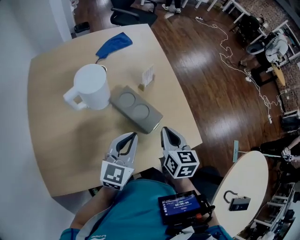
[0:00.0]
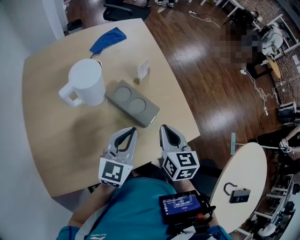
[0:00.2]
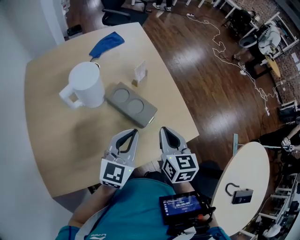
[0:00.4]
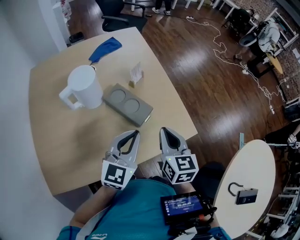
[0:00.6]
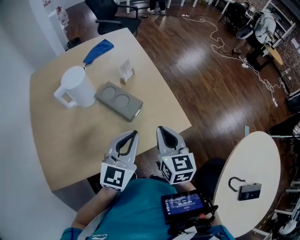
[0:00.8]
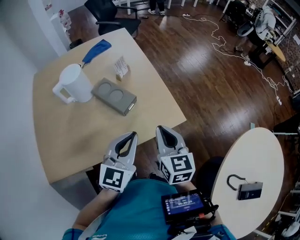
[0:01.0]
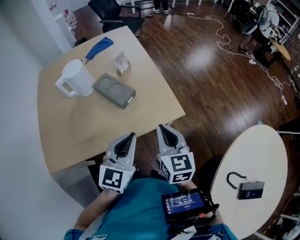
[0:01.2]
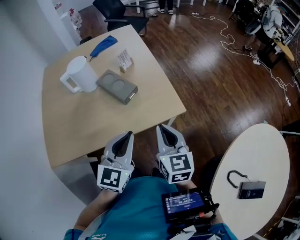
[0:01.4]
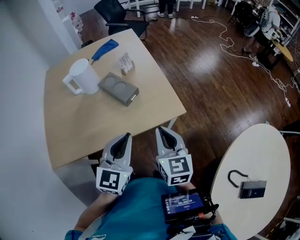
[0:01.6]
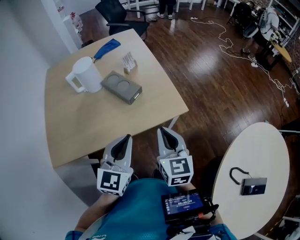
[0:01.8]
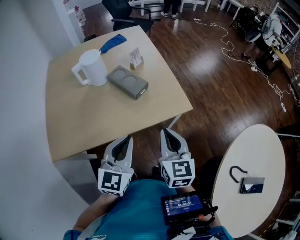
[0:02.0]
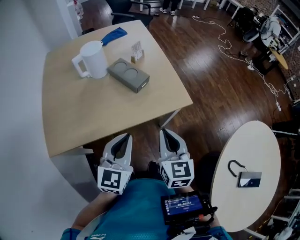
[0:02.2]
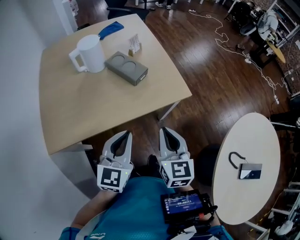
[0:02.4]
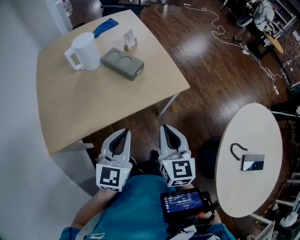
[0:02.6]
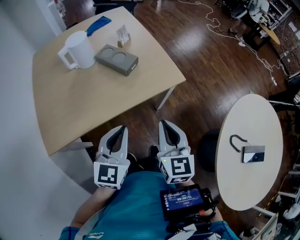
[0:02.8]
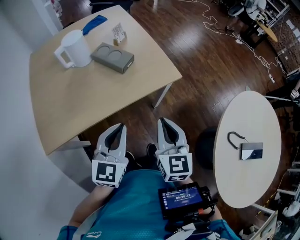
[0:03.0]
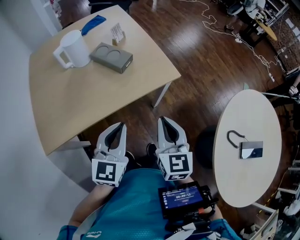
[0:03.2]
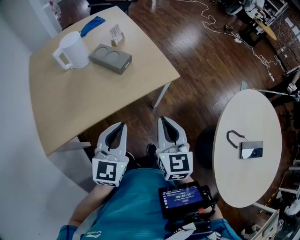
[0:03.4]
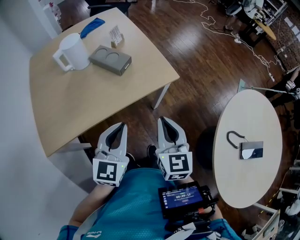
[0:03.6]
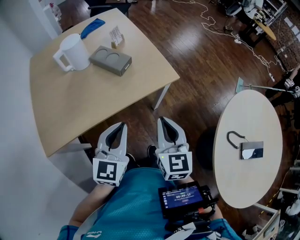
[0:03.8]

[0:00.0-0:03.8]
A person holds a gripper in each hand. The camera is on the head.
0:00.0 to 0:01.2: Both grippers travel together to the right and backward, roughly 20 cm.
0:01.2 to 0:02.6: The right gripper is displaced backward by some 15 cm. Meanwhile the left gripper heads backward and to the left, covering some 15 cm.
0:02.6 to 0:03.8: There are only small adjustments of the grippers.

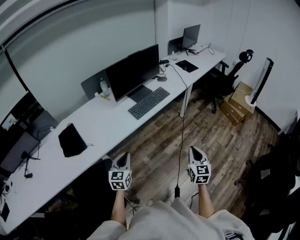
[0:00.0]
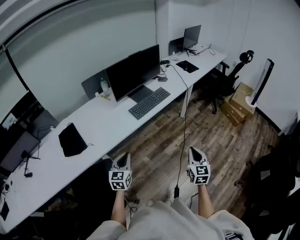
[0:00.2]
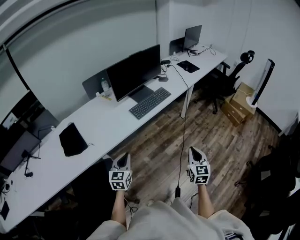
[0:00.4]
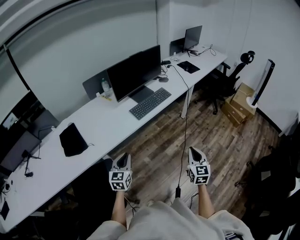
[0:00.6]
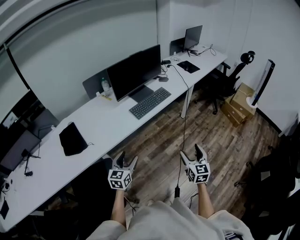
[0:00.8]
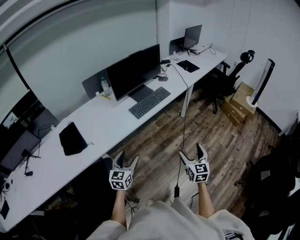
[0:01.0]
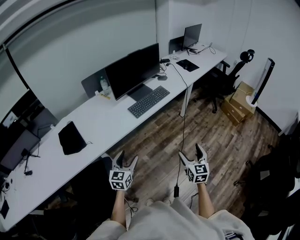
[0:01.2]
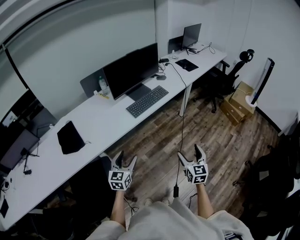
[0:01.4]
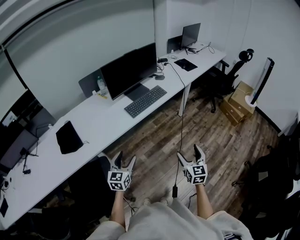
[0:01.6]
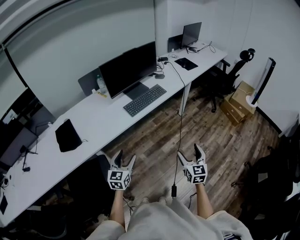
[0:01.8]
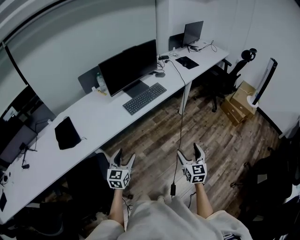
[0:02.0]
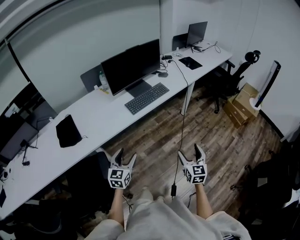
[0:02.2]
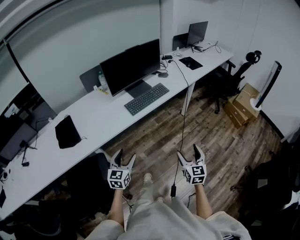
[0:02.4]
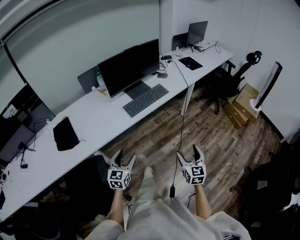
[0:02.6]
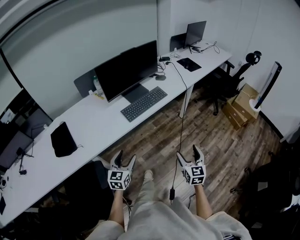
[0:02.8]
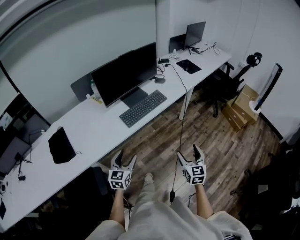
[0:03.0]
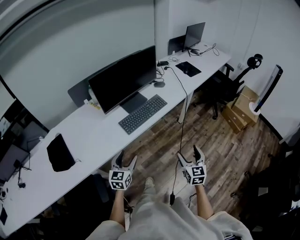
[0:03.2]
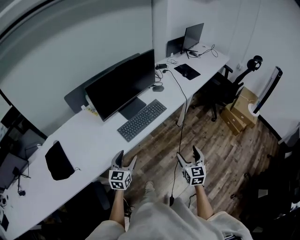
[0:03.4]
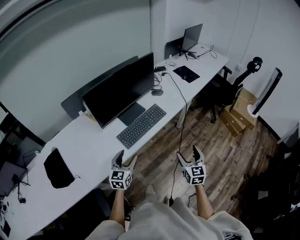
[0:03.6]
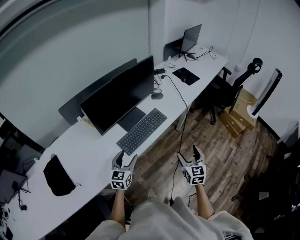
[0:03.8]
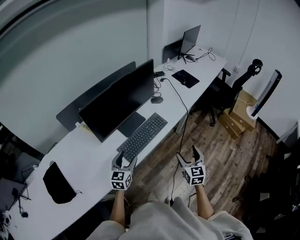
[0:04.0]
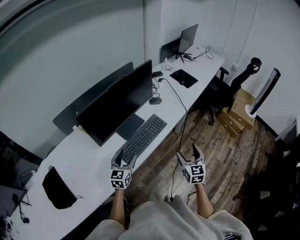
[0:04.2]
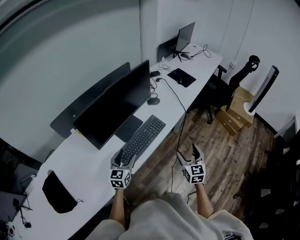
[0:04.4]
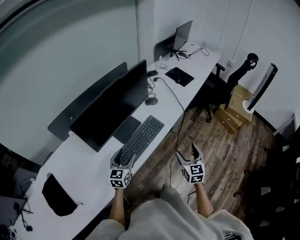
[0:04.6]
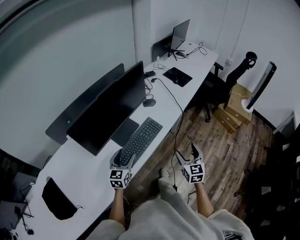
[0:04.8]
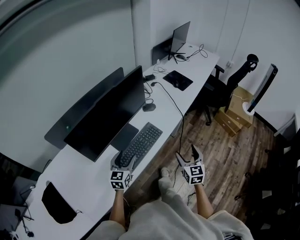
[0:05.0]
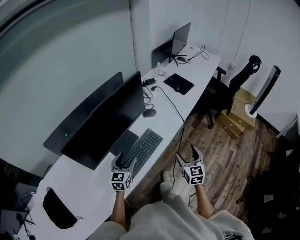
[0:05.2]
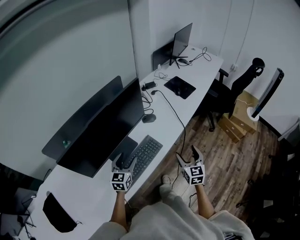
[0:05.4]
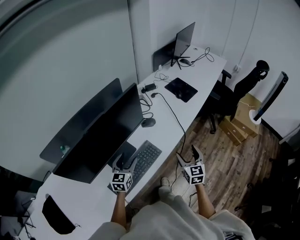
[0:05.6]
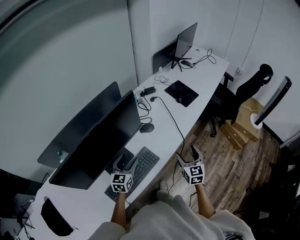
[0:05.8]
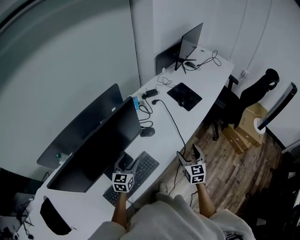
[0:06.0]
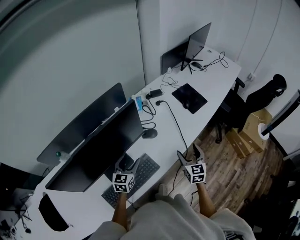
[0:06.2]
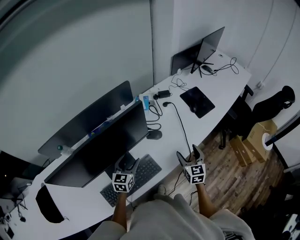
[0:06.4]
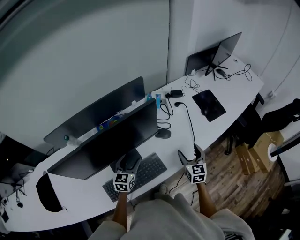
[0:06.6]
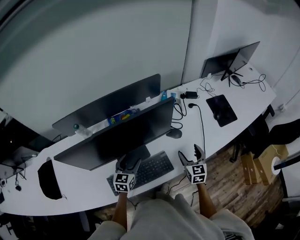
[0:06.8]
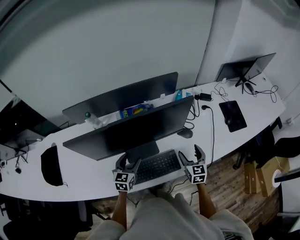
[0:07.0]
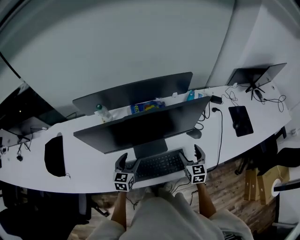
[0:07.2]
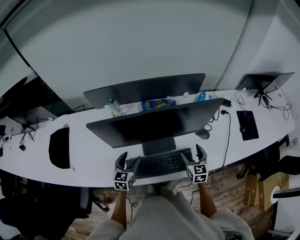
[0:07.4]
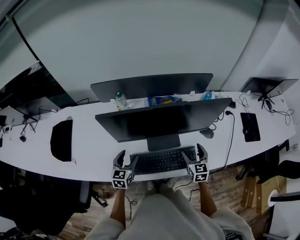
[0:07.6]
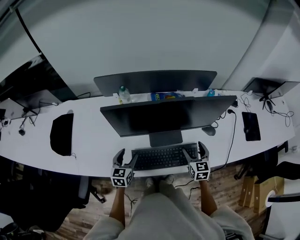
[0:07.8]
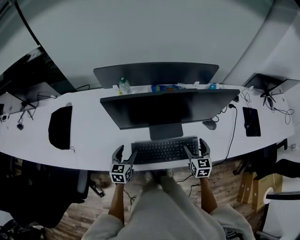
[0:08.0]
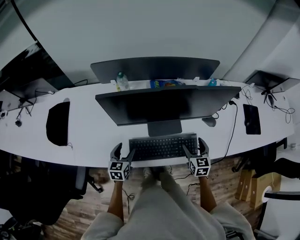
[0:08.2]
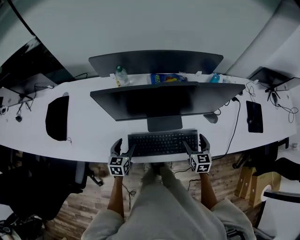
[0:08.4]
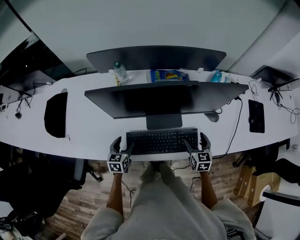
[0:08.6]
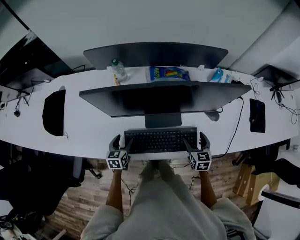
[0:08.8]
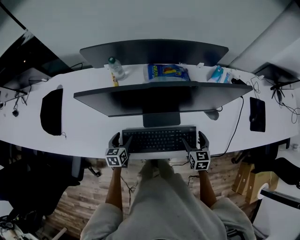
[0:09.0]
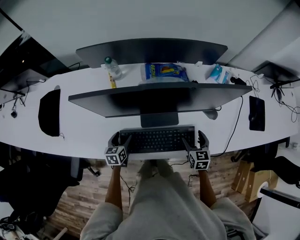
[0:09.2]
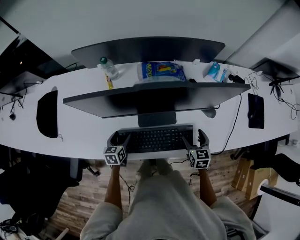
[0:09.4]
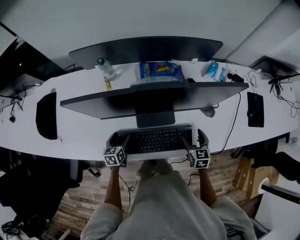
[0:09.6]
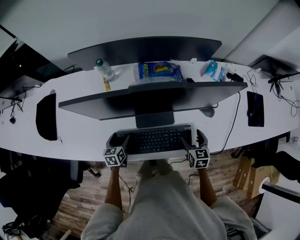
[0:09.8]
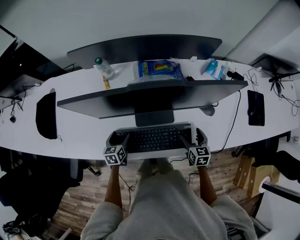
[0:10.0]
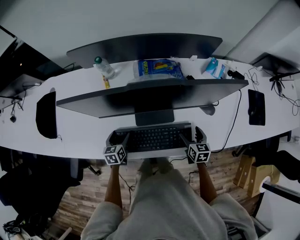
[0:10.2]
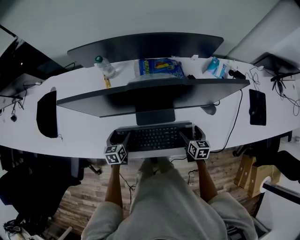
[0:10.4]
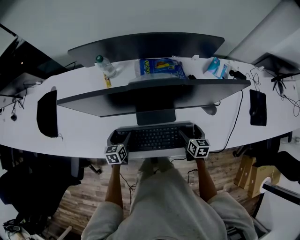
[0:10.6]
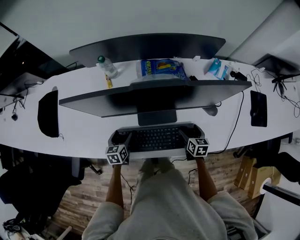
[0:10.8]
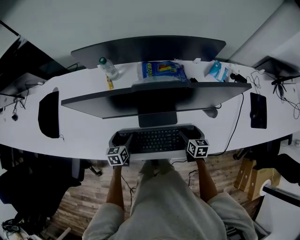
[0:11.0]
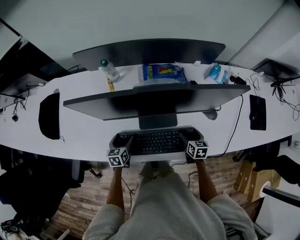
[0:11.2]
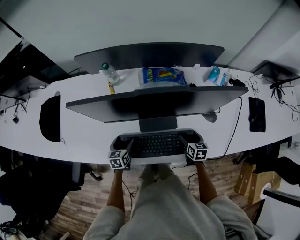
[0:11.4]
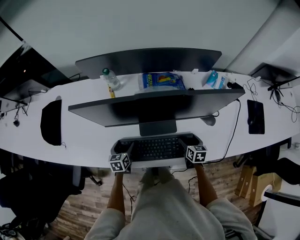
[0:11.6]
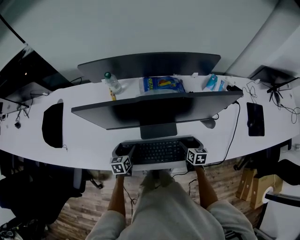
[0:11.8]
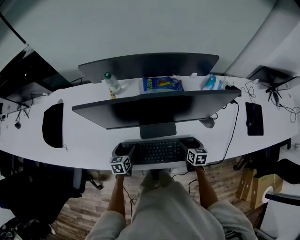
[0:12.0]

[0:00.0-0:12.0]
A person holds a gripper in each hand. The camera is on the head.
0:00.0 to 0:01.6: The right gripper opens. Meanwhile the left gripper opens up.
0:01.6 to 0:03.0: The two grippers go about 15 cm forward.
0:03.0 to 0:04.4: The grippers both shift forward by roughly 30 cm.
0:04.4 to 0:06.0: The two grippers go roughly 30 cm forward.
0:06.0 to 0:07.6: The left gripper changes place by some 30 cm, and swivels about 40 degrees. The right gripper moves some 30 cm, and turns by approximately 40 degrees.
0:07.6 to 0:09.0: Both grippers move downward, roughly 10 cm. The left gripper rotates some 20 degrees.
0:09.0 to 0:10.4: The right gripper shifts approximately 5 cm downward.
0:10.4 to 0:12.0: There are only small adjustments of the grippers.

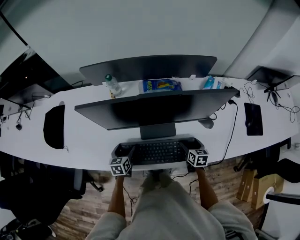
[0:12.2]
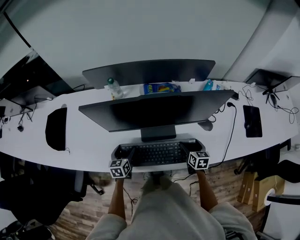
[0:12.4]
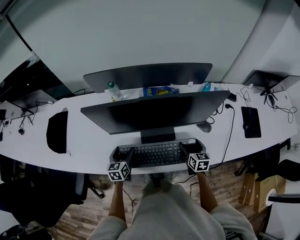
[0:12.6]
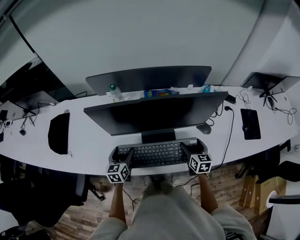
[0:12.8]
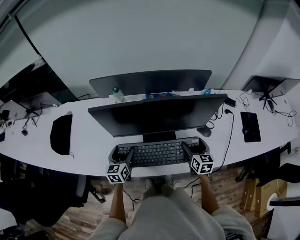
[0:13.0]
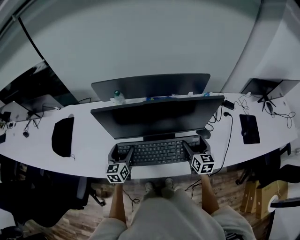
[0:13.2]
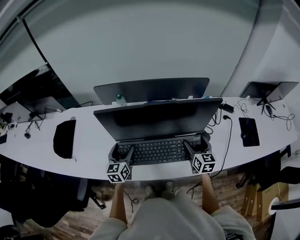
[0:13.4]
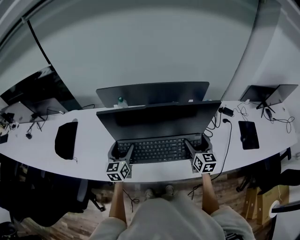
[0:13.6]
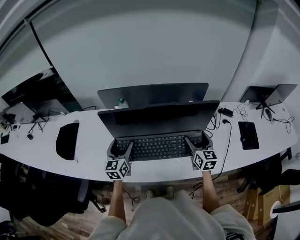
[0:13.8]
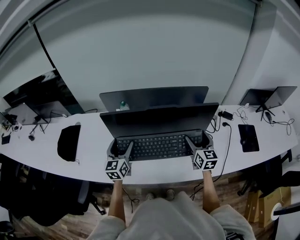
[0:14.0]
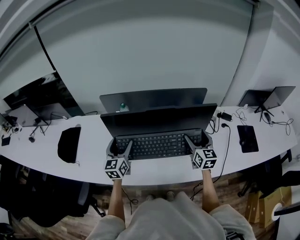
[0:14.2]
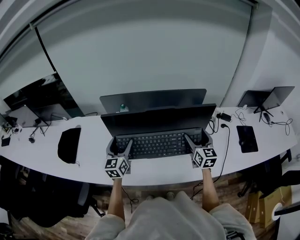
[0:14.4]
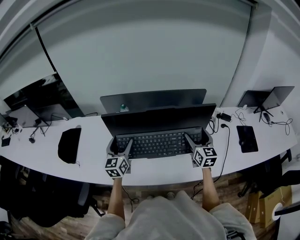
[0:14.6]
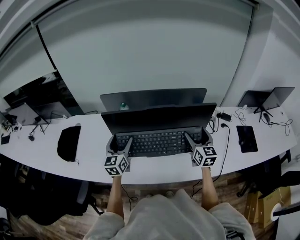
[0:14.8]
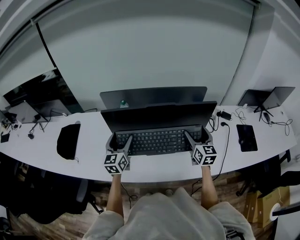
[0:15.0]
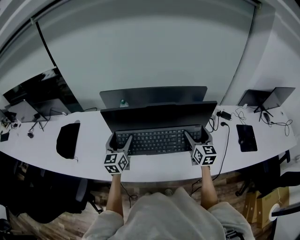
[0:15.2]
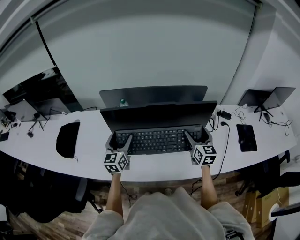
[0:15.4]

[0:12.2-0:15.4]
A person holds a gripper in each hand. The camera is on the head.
0:12.2 to 0:13.8: Both grippers travel together upward, some 25 cm. The right gripper rotates some 30 degrees. The left gripper swivels about 30 degrees.
0:13.8 to 0:15.4: There are only small adjustments of the grippers.

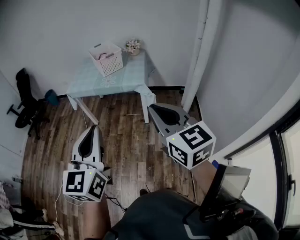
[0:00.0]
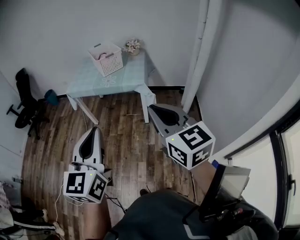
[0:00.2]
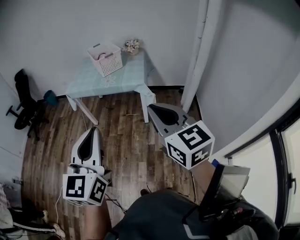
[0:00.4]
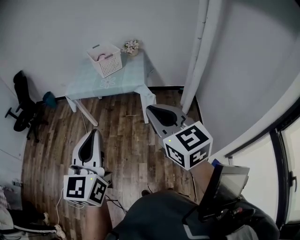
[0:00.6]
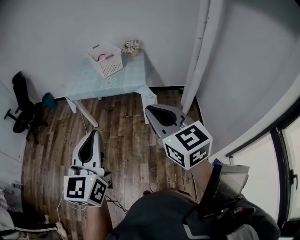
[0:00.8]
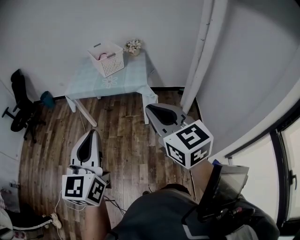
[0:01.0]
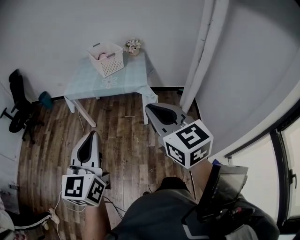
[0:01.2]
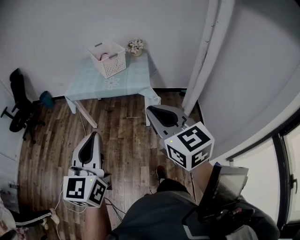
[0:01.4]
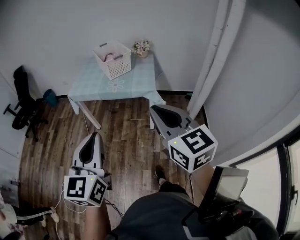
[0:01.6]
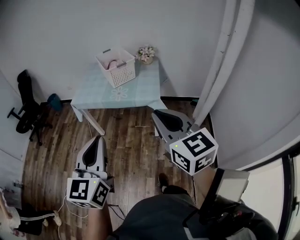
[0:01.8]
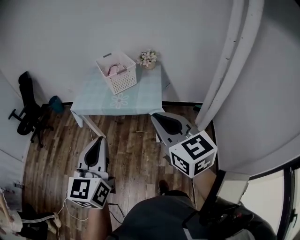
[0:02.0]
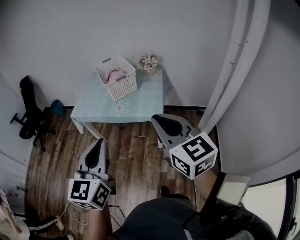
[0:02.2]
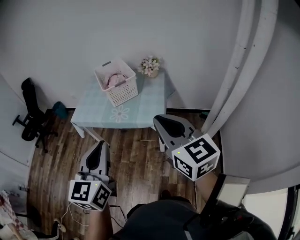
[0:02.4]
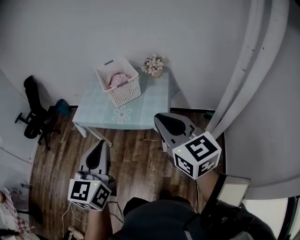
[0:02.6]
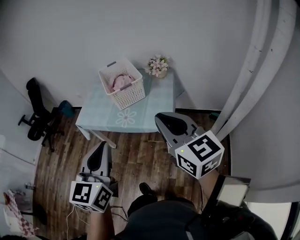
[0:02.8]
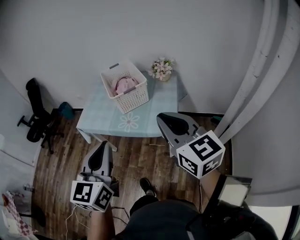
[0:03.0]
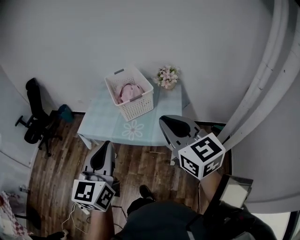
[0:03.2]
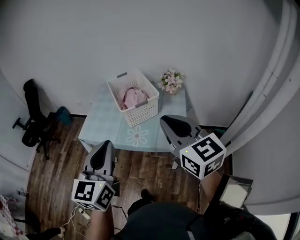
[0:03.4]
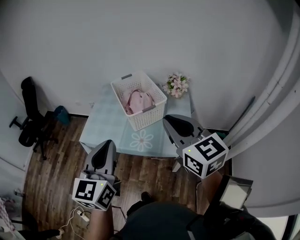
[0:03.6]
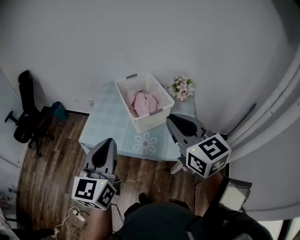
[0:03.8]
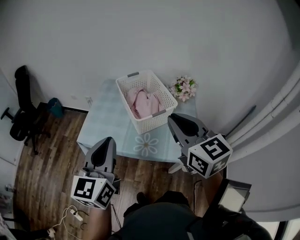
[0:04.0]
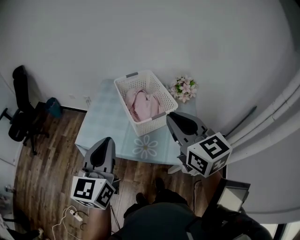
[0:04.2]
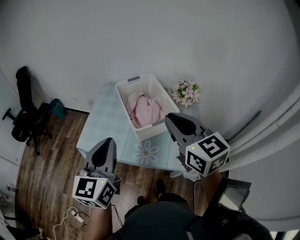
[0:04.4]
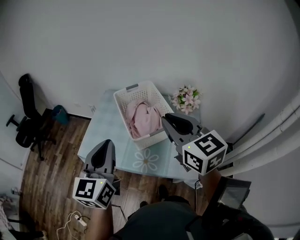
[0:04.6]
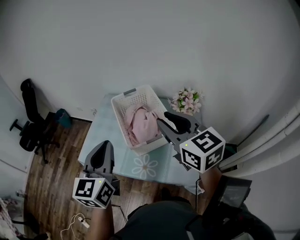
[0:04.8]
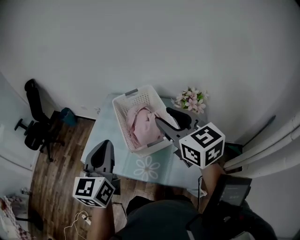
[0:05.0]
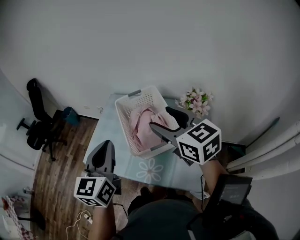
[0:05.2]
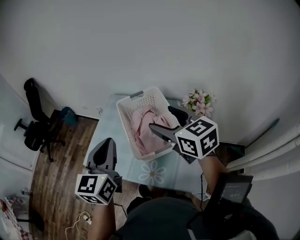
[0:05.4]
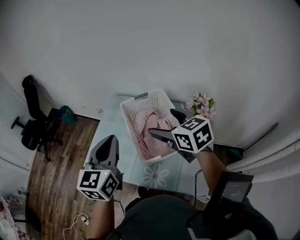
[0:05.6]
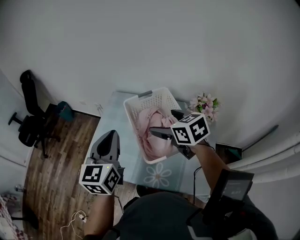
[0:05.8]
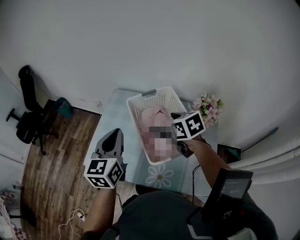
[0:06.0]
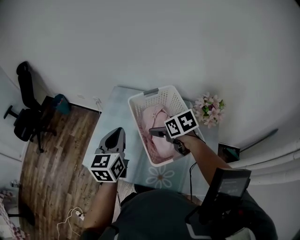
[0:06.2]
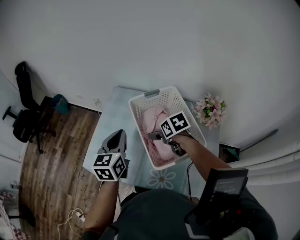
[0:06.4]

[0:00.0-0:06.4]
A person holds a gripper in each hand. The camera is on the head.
0:00.0 to 0:01.6: Both grippers move forward and to the left, some 15 cm.
0:01.6 to 0:03.2: Both grippers travel together forward, some 35 cm.
0:03.2 to 0:04.8: Both grippers move forward, approximately 30 cm.
0:04.8 to 0:06.4: The left gripper goes approximately 25 cm forward and downward. Meanwhile the right gripper shifts approximately 35 cm downward and forward, tips its fingers downward by roughly 50 degrees, and opens.
